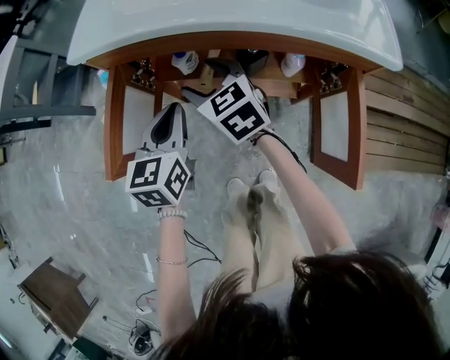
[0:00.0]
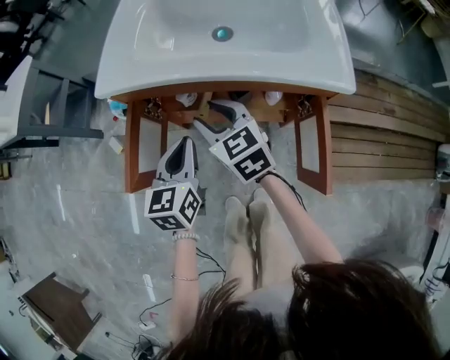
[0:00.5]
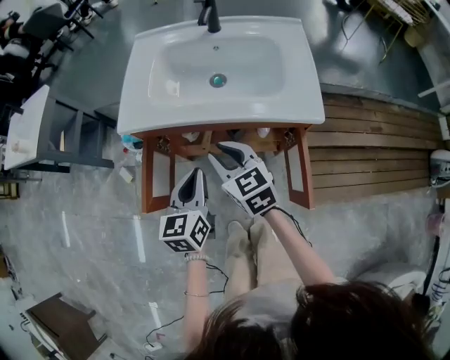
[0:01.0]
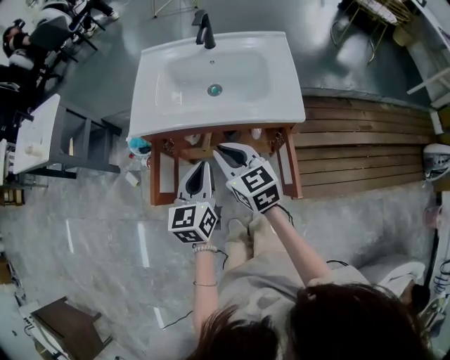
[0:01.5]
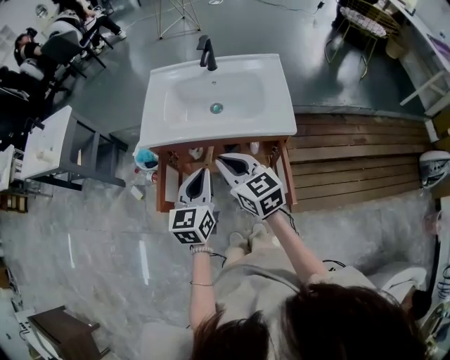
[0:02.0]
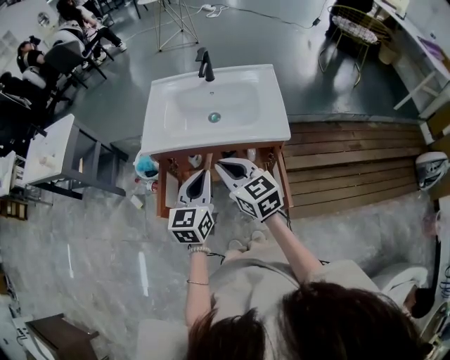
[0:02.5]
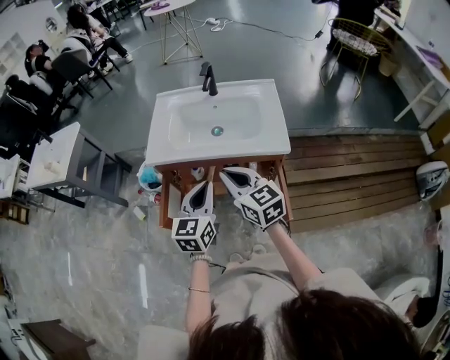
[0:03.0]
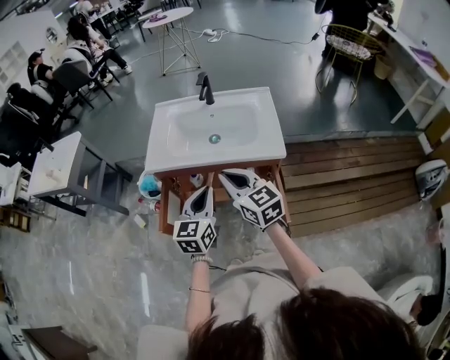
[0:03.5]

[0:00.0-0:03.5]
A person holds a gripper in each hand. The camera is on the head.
0:00.0 to 0:02.0: The right gripper heads upward and backward, covering approximately 30 cm, and closes up; the left gripper heads upward, covering approximately 25 cm.
0:02.0 to 0:03.5: There are only small adjustments of the grippers.

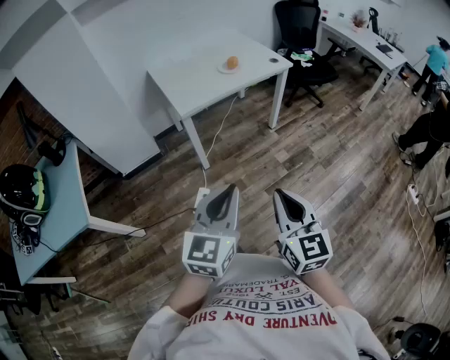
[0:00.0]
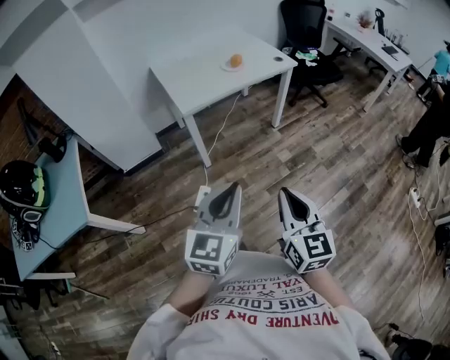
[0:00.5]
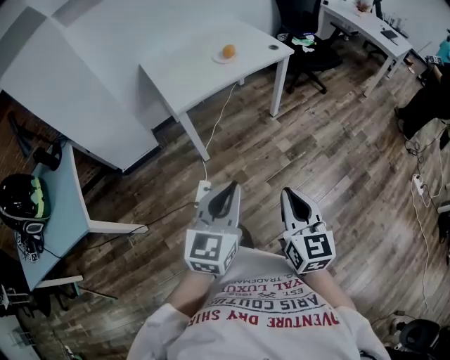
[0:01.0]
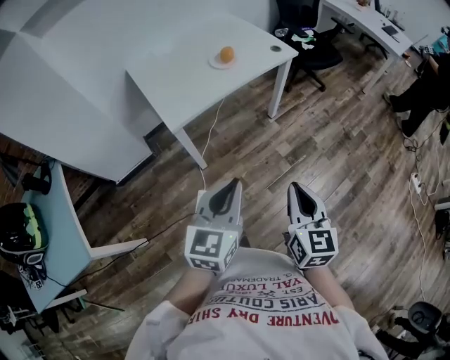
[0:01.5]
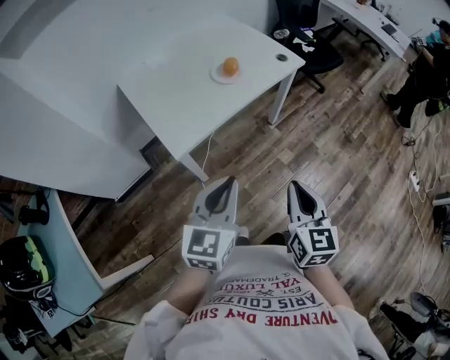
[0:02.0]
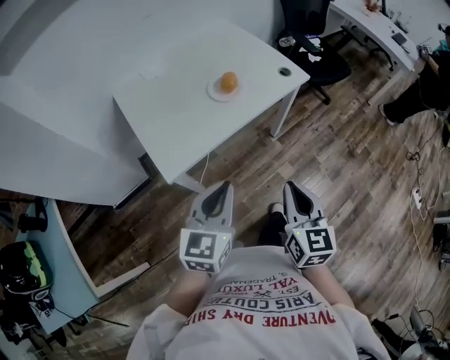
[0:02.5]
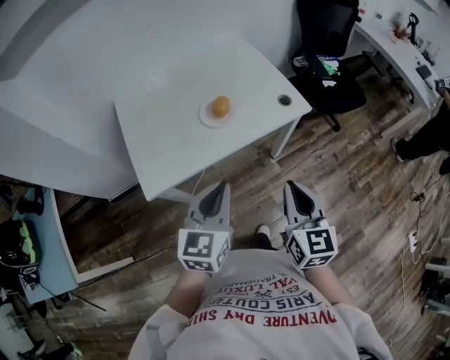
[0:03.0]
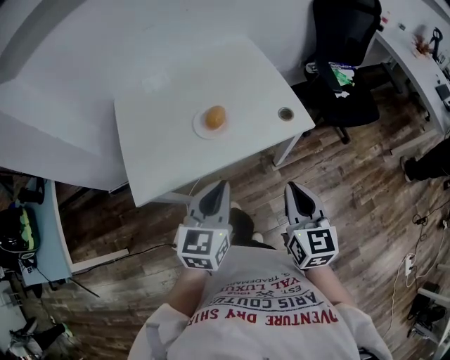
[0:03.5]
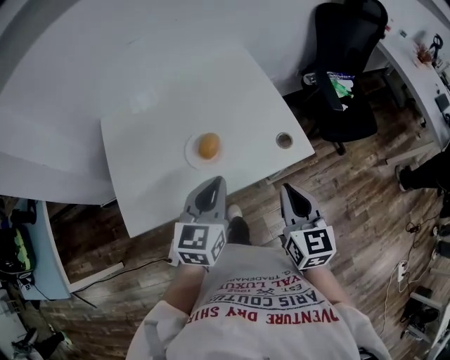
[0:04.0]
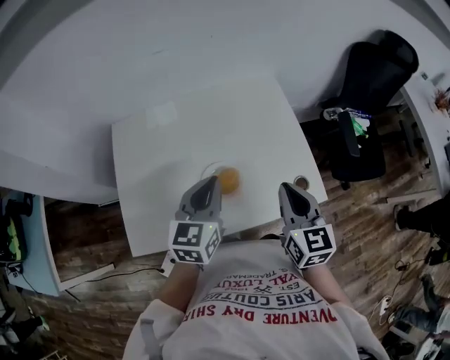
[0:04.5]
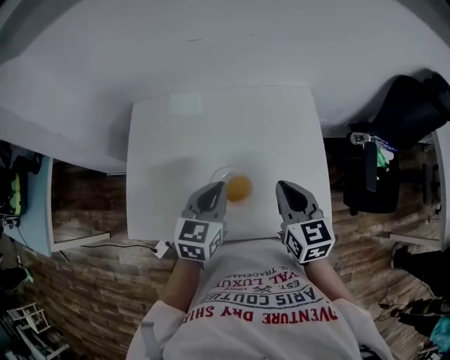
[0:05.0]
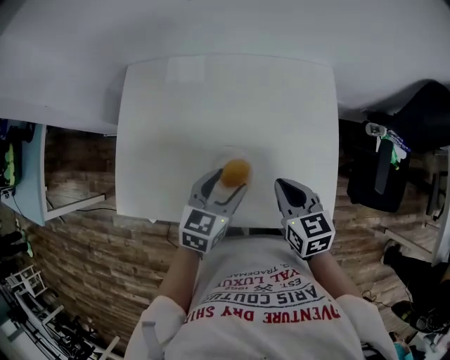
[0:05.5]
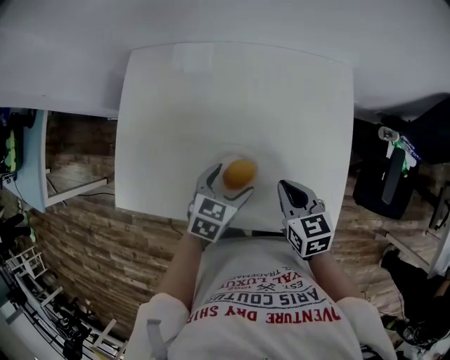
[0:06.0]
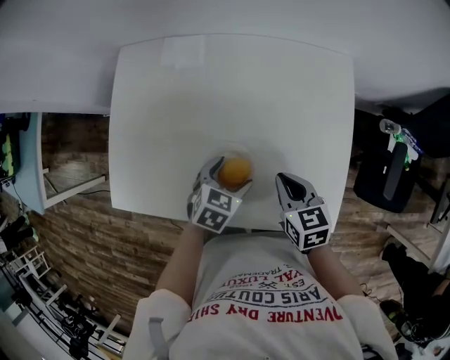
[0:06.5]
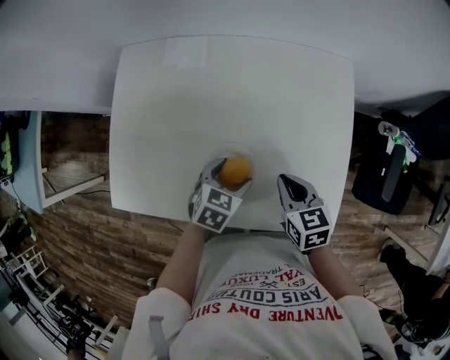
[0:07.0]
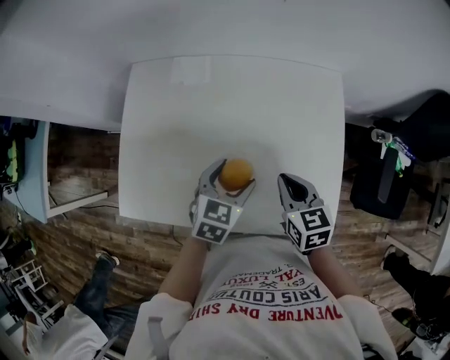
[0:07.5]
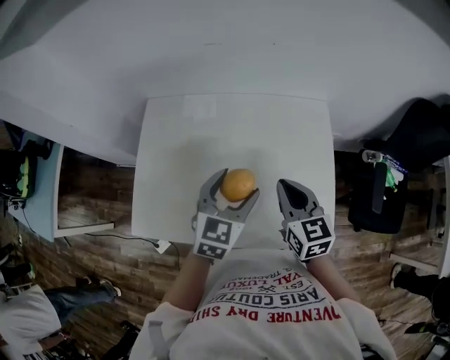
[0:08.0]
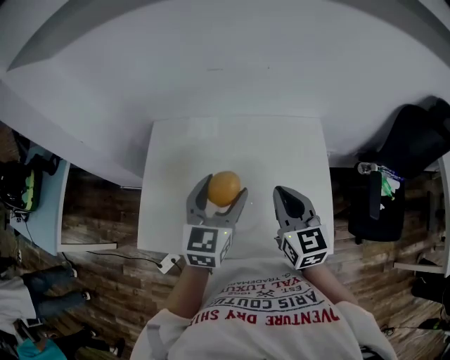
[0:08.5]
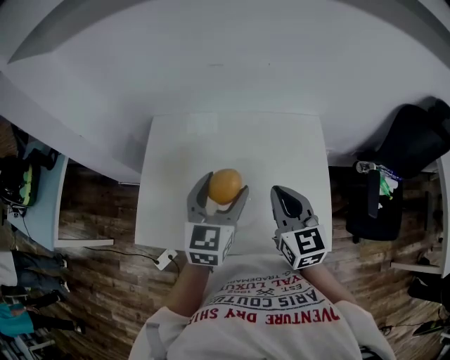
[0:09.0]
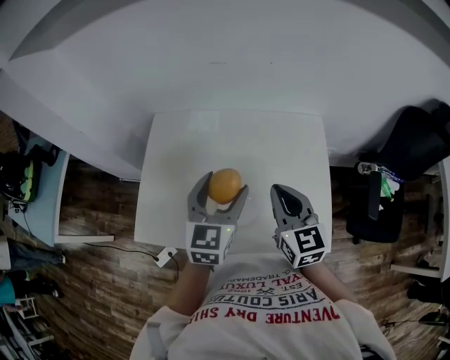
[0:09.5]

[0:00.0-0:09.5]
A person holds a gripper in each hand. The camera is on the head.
0:00.0 to 0:02.0: Both grippers move forward, about 30 cm. The right gripper rotates about 20 degrees.
0:02.0 to 0:04.0: The pair of grippers is taken forward, about 50 cm. The right gripper turns by some 20 degrees. Meanwhile the left gripper swivels approximately 20 degrees.
0:04.0 to 0:05.5: Both grippers travel together forward and downward, about 25 cm. The right gripper swivels approximately 40 degrees; the left gripper rotates about 20 degrees, and opens its fingers.
0:05.5 to 0:07.5: The left gripper goes downward and returns, about 10 cm each way.
0:07.5 to 0:09.5: The grippers both shift upward by roughly 15 cm. The right gripper rotates some 30 degrees, while the left gripper swivels roughly 30 degrees.

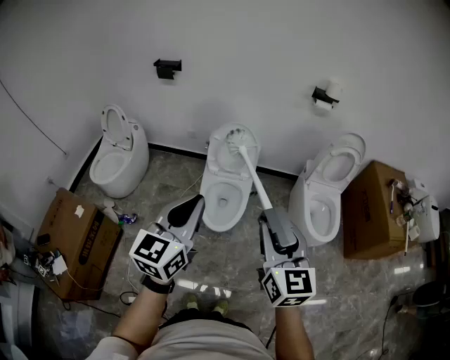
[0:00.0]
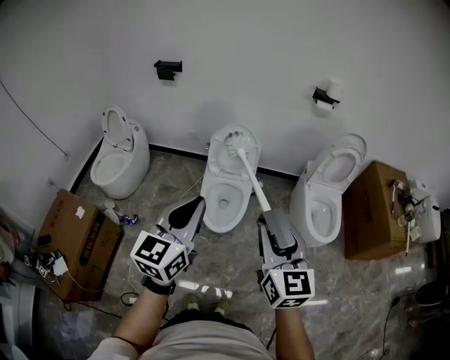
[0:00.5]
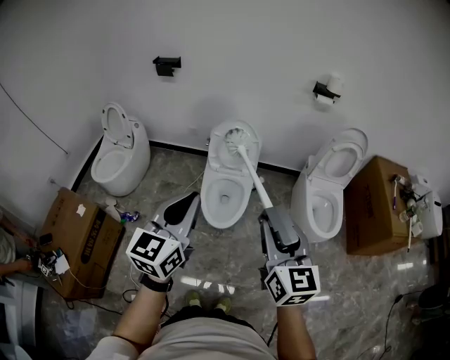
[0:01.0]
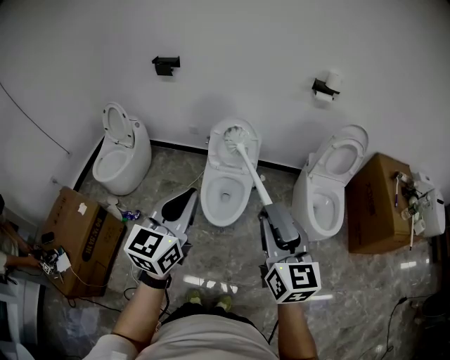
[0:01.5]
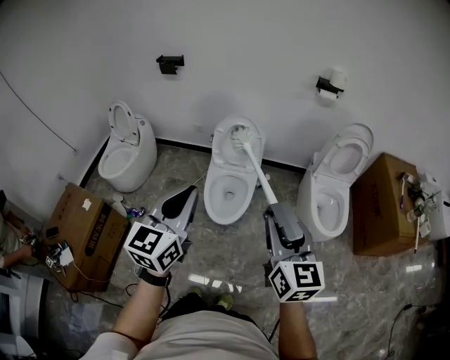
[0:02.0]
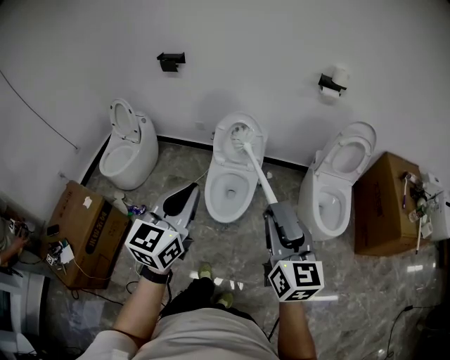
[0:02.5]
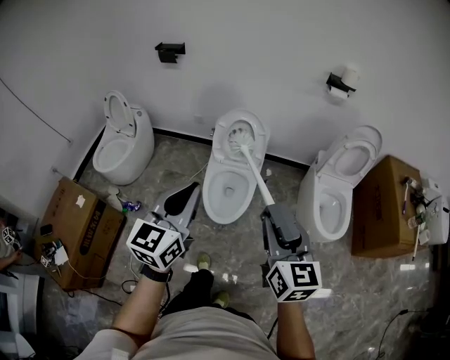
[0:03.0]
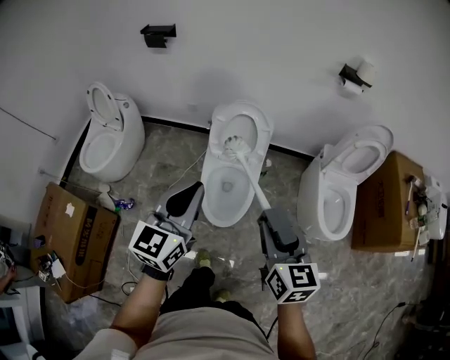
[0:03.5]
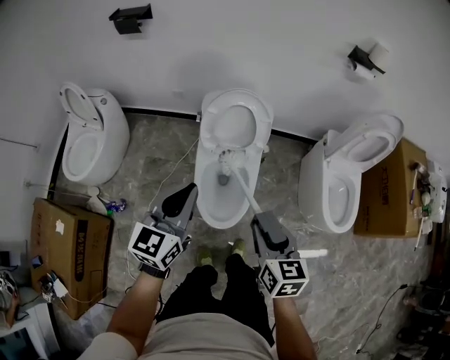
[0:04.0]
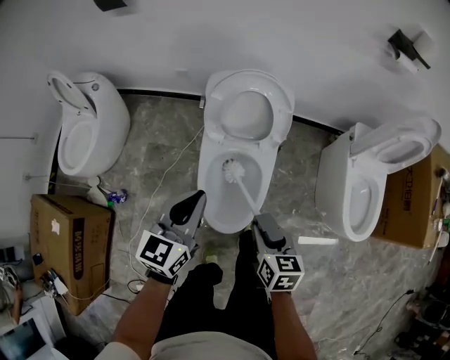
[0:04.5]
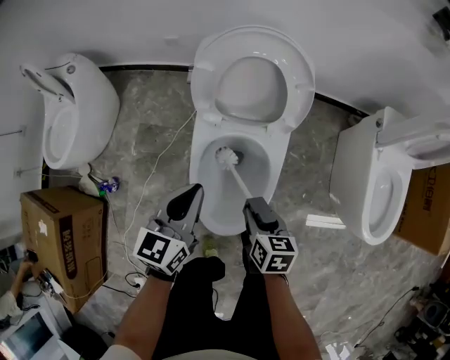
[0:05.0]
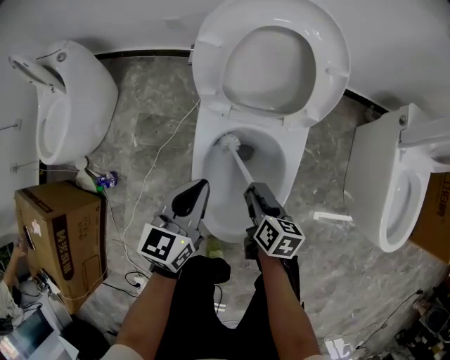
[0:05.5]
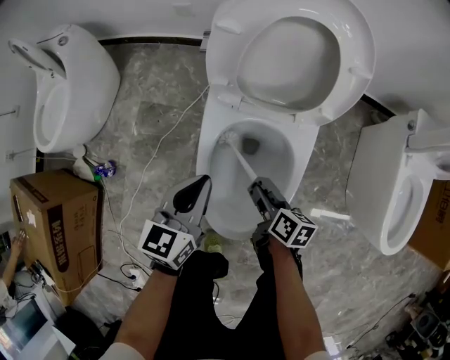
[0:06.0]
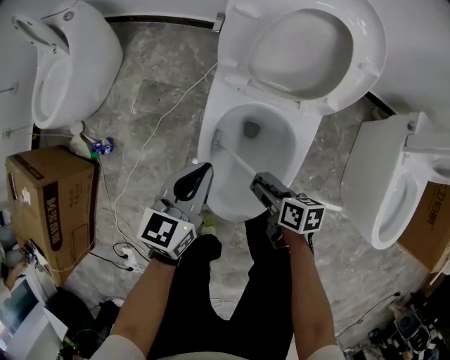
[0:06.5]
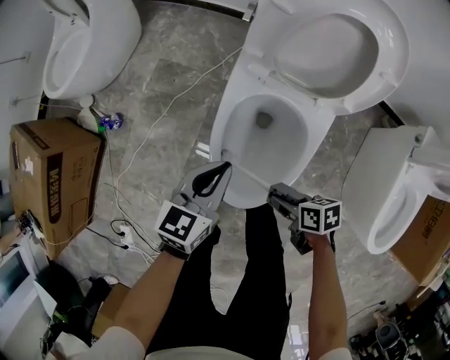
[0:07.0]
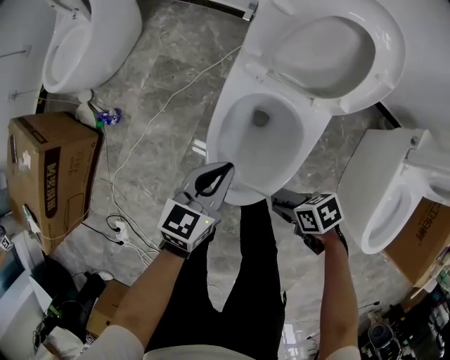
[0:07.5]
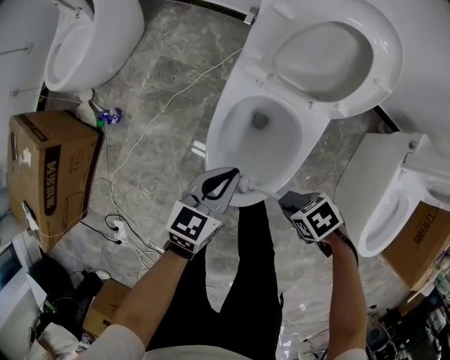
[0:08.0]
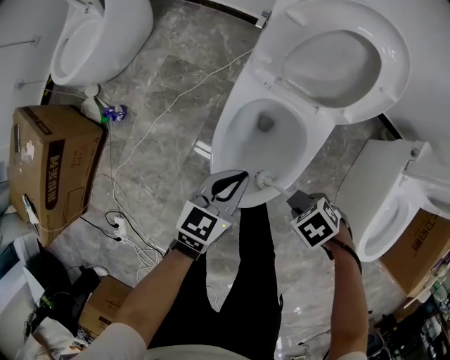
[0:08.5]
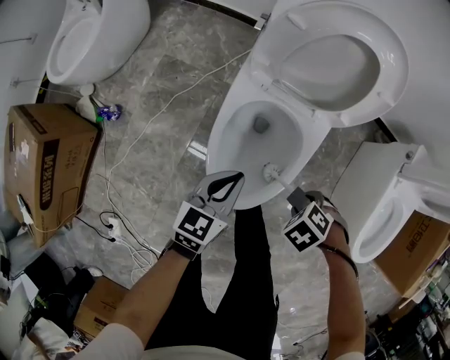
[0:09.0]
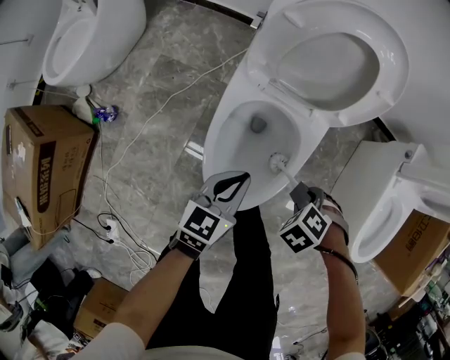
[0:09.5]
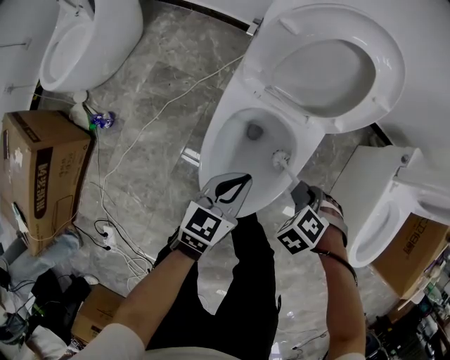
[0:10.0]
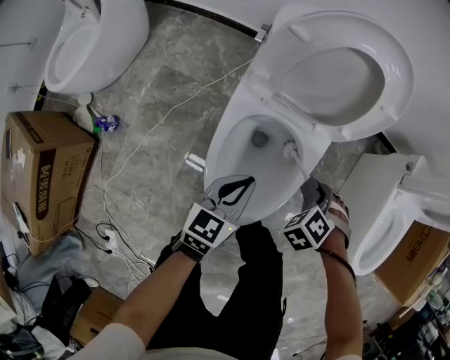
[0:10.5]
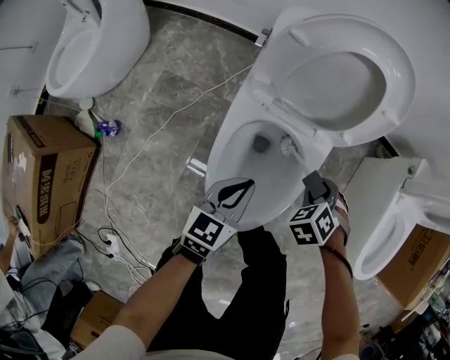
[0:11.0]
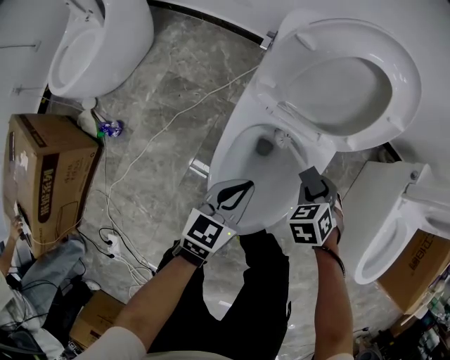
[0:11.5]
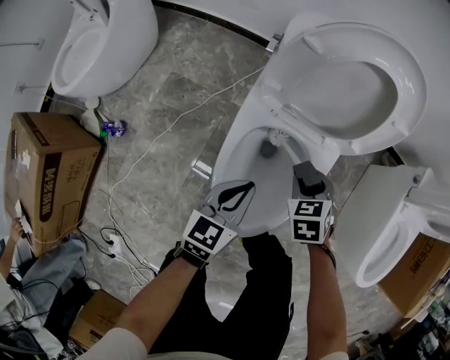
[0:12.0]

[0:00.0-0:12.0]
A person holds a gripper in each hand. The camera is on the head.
0:00.0 to 0:02.0: The right gripper heads to the right, covering roughly 5 cm.
0:02.0 to 0:04.0: The right gripper goes some 35 cm forward, downward and to the left, and changes its angle by roughly 30 degrees, while the left gripper goes approximately 35 cm forward and downward.
0:04.0 to 0:06.0: The grippers both shift downward by roughly 50 cm. The right gripper turns by approximately 40 degrees.
0:06.0 to 0:08.0: The left gripper moves roughly 10 cm. Meanwhile the right gripper moves some 15 cm, and rotates some 80 degrees.
0:08.0 to 0:10.0: The right gripper changes place by roughly 10 cm, and turns by some 40 degrees.
0:10.0 to 0:12.0: The right gripper shifts by some 15 cm, and rotates approximately 50 degrees.

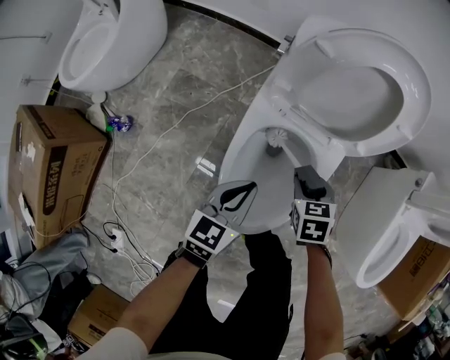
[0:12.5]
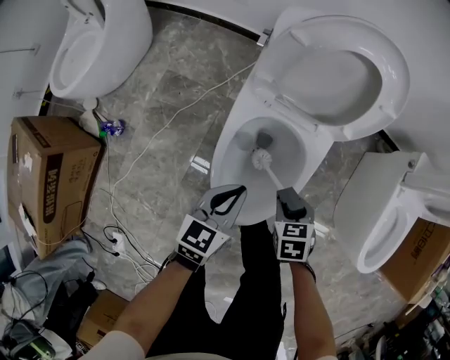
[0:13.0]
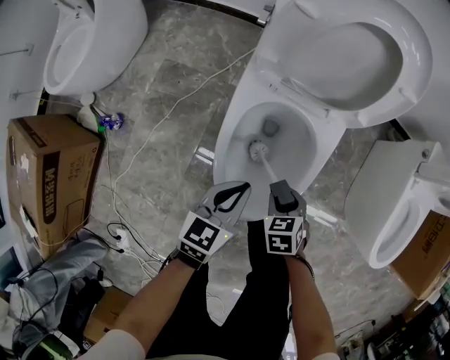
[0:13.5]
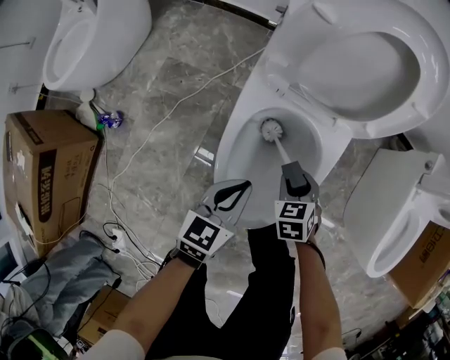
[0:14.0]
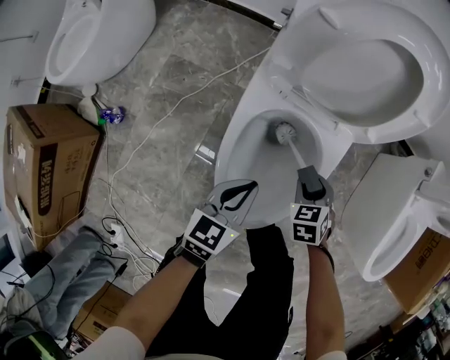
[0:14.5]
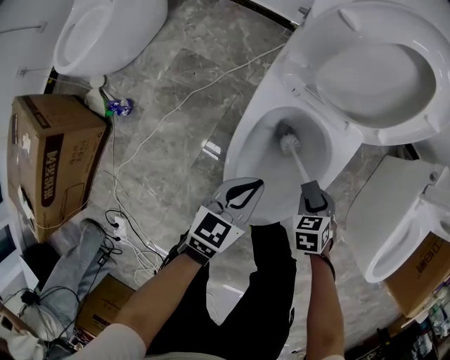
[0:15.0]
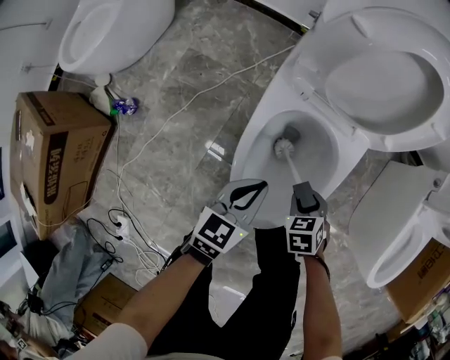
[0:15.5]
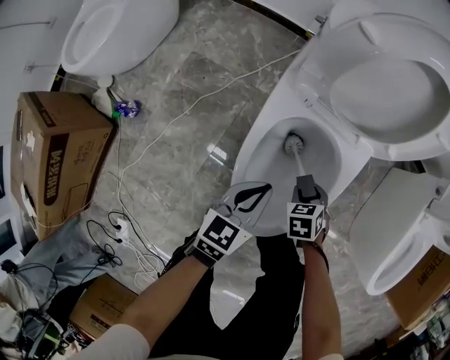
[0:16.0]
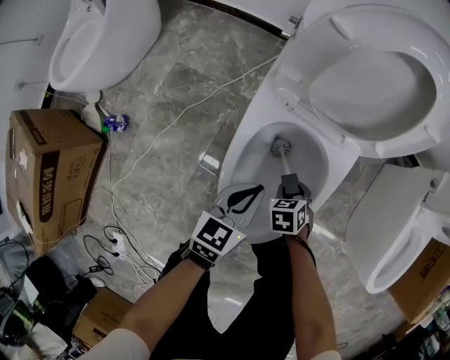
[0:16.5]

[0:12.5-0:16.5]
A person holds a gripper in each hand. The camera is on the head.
0:12.5 to 0:14.5: The left gripper shifts by about 5 cm, while the right gripper shifts approximately 10 cm downward, and goes backward and returns, approximately 15 cm each way.
0:14.5 to 0:16.5: The right gripper goes approximately 10 cm downward.
